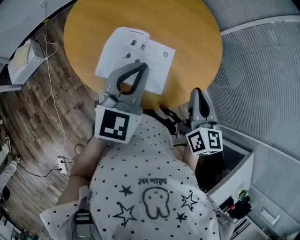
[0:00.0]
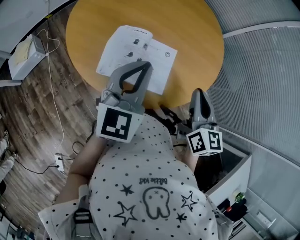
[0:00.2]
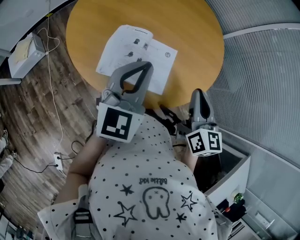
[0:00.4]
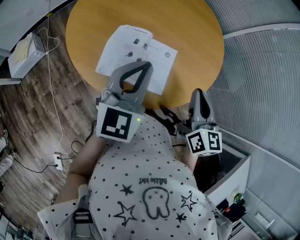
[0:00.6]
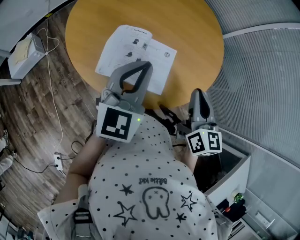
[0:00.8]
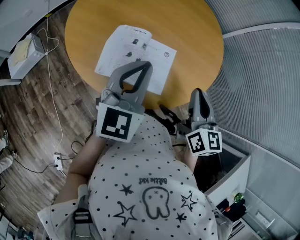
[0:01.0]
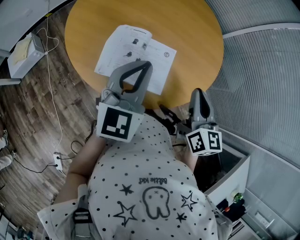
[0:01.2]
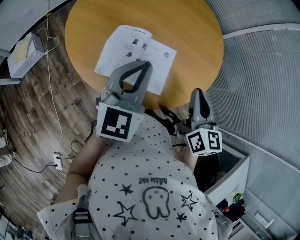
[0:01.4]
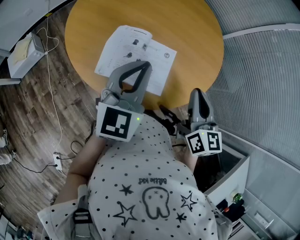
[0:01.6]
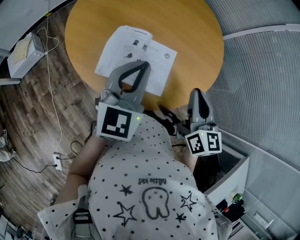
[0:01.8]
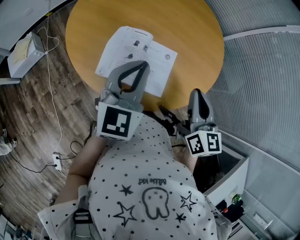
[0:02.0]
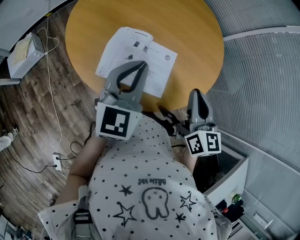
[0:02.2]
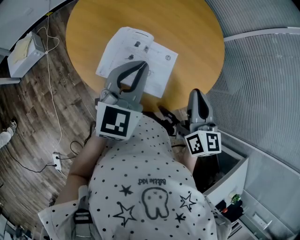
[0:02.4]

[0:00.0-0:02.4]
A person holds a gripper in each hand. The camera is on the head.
0:00.0 to 0:01.2: Both grippers stay about where they are.
0:01.2 to 0:02.4: Both grippers stay put.

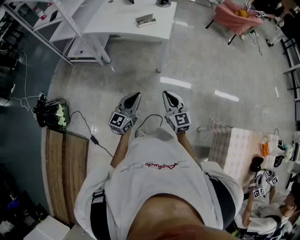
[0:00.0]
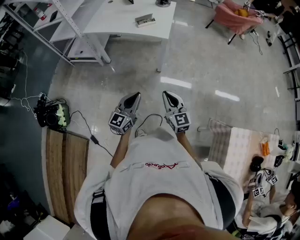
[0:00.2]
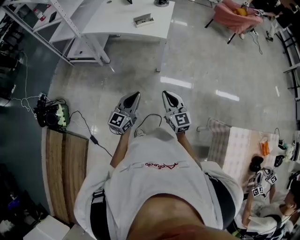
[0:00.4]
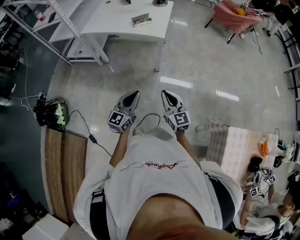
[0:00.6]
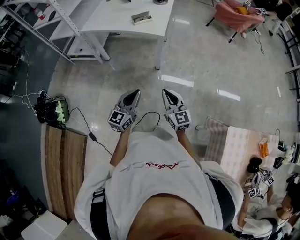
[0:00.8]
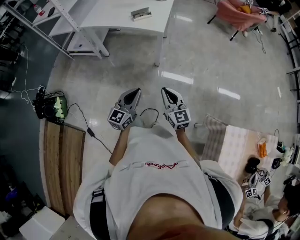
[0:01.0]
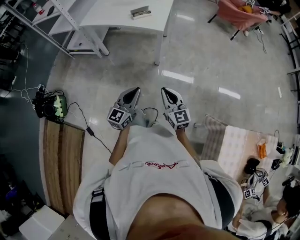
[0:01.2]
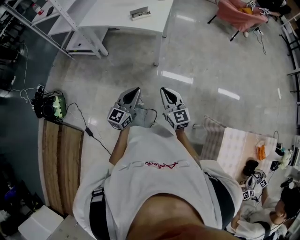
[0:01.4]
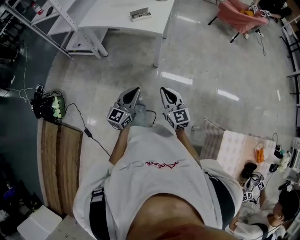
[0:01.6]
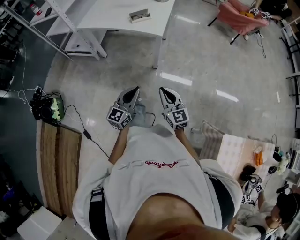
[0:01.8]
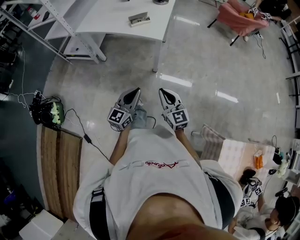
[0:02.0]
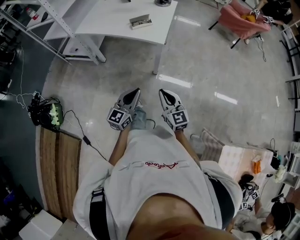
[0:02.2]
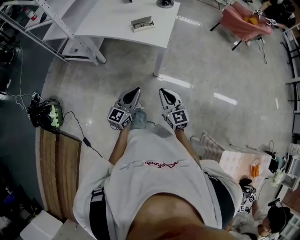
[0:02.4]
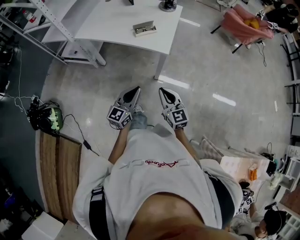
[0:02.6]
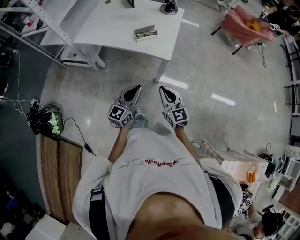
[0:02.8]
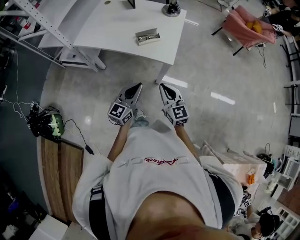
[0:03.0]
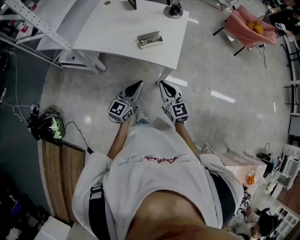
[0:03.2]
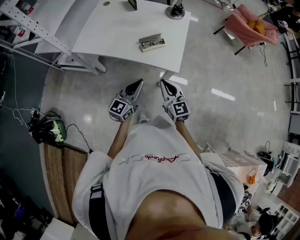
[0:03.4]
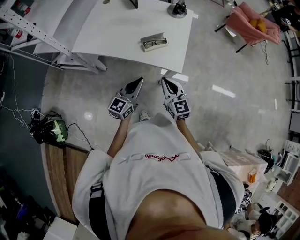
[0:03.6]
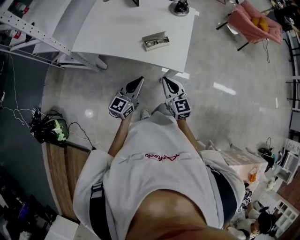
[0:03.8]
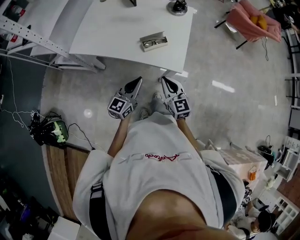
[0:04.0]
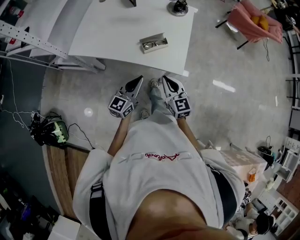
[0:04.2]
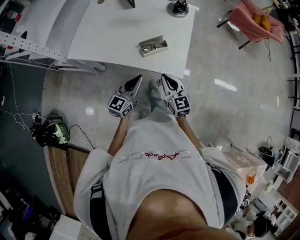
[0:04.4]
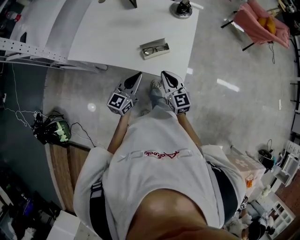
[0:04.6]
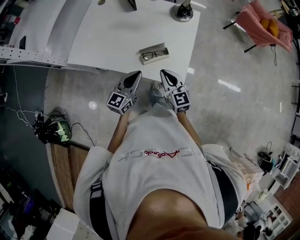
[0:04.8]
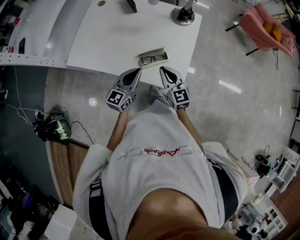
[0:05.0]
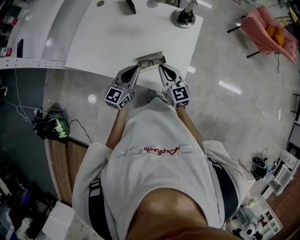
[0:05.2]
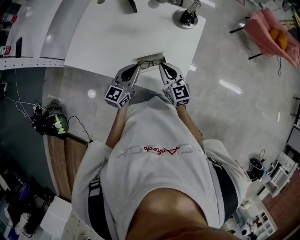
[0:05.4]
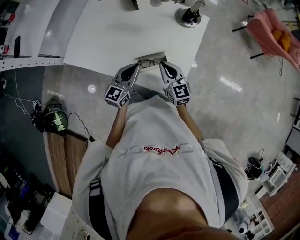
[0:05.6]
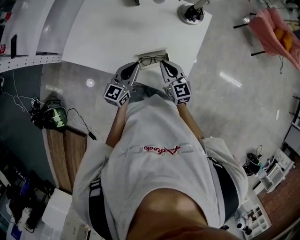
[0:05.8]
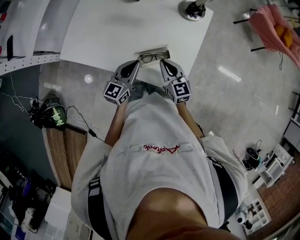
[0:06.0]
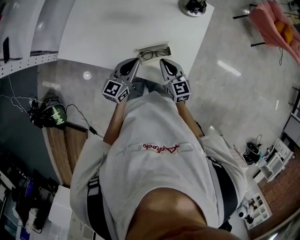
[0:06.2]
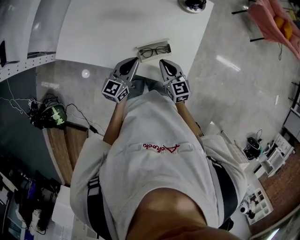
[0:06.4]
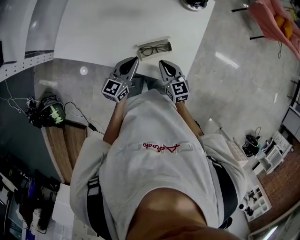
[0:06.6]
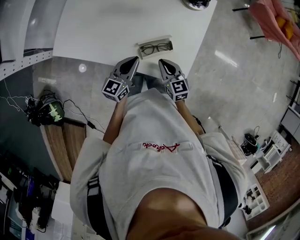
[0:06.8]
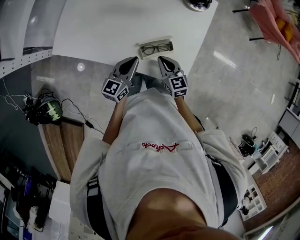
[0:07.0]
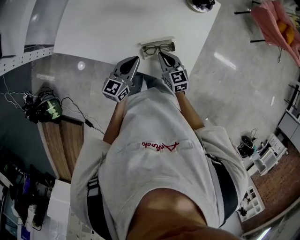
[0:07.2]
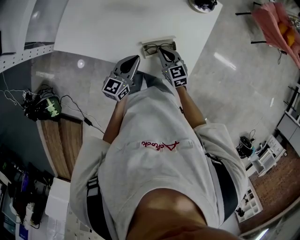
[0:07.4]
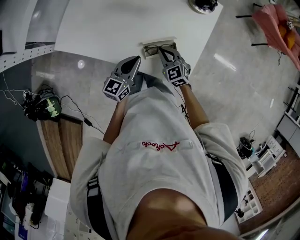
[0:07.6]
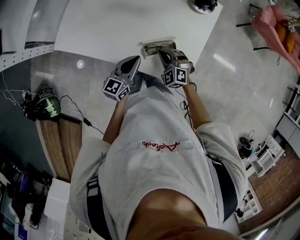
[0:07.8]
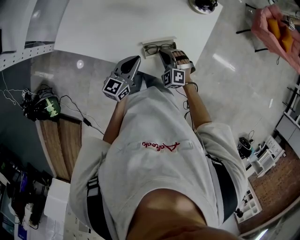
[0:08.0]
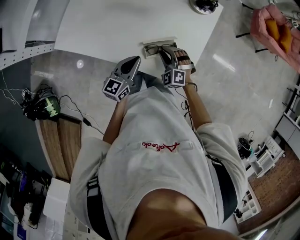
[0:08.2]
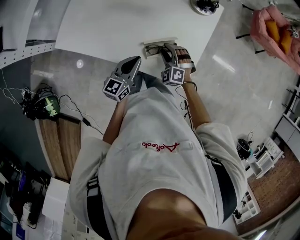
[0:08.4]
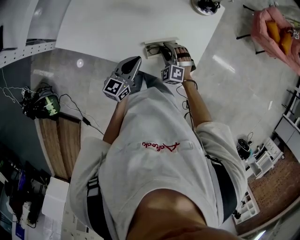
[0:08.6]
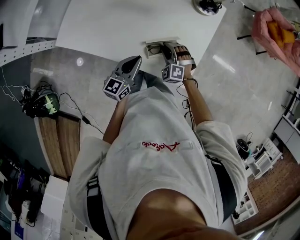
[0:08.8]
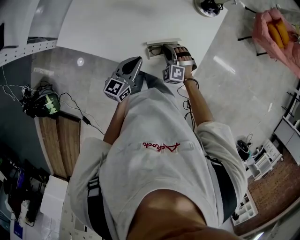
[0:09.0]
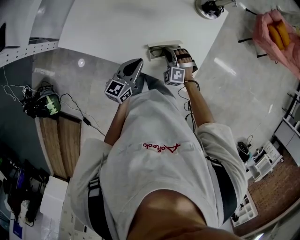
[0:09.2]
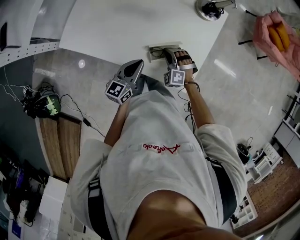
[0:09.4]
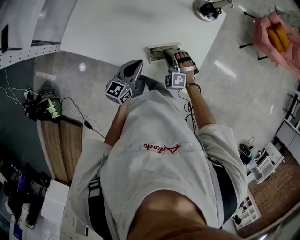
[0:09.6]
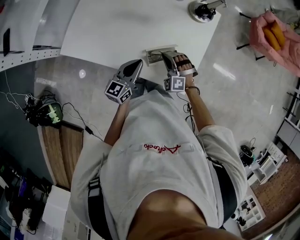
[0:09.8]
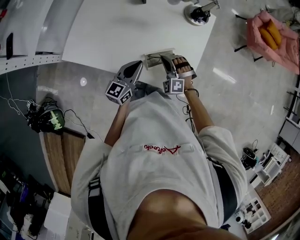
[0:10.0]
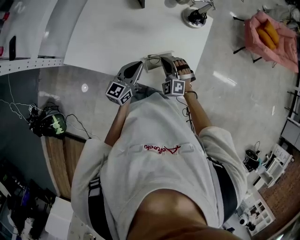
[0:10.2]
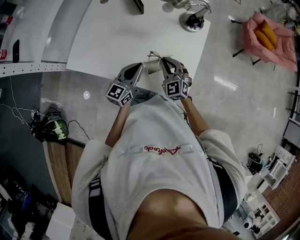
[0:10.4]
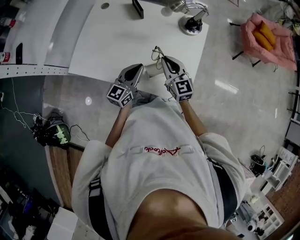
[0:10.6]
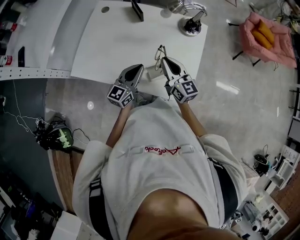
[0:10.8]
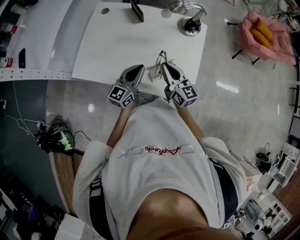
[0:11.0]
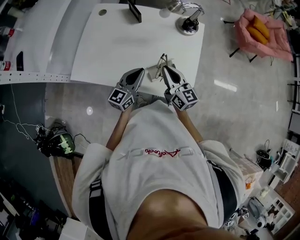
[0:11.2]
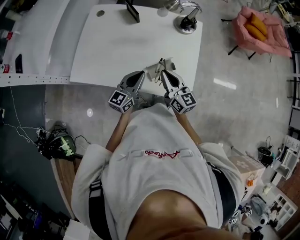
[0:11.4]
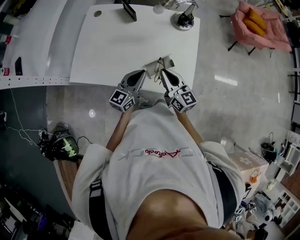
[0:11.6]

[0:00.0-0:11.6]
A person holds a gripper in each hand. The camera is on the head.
0:00.0 to 0:01.4: The grippers both shift to the right by approximately 5 cm.
0:01.4 to 0:02.8: The grippers both shift forward by approximately 25 cm.
0:02.8 to 0:04.4: The two grippers go some 20 cm forward.
0:04.4 to 0:05.8: The two grippers go about 15 cm forward.
0:05.8 to 0:07.2: The right gripper travels downward by roughly 10 cm.
0:07.2 to 0:08.8: The right gripper ends up some 5 cm from where it was, twists about 60 degrees counterclockwise, seen from behind, and opens up.
0:08.8 to 0:10.2: The left gripper ends up about 5 cm from where it was. Meanwhile the right gripper moves upward, roughly 10 cm, and closes.
0:10.2 to 0:11.6: The right gripper shifts roughly 10 cm upward, and rolls clockwise, seen from behind, by approximately 80 degrees.

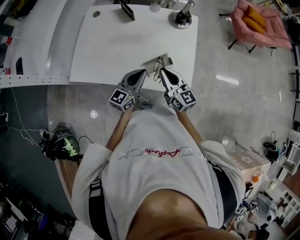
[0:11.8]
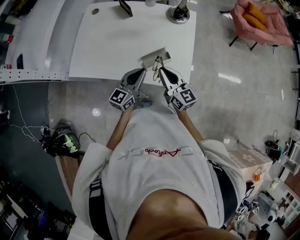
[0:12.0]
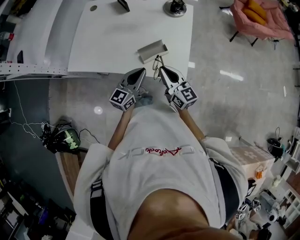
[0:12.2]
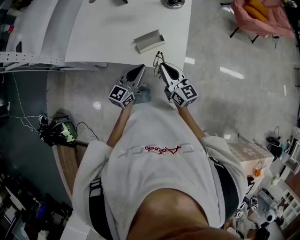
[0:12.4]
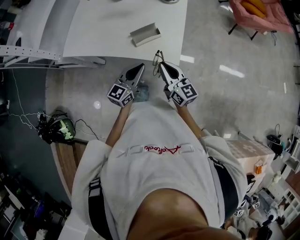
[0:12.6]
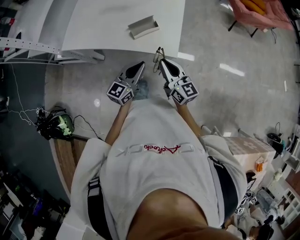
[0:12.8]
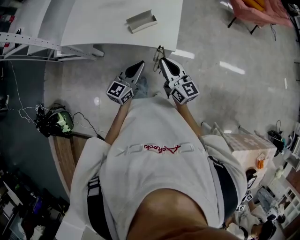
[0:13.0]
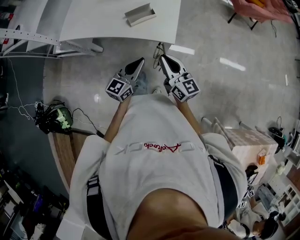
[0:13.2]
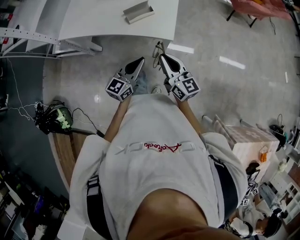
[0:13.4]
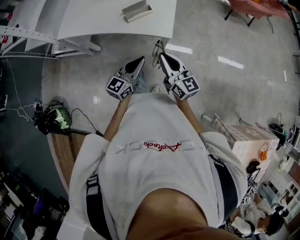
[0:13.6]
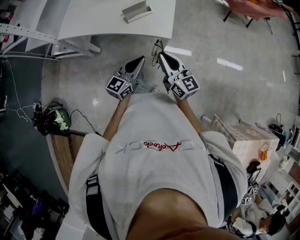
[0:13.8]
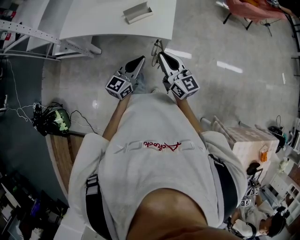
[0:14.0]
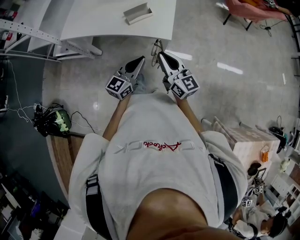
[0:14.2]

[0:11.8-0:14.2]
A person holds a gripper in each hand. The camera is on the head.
0:11.8 to 0:13.0: The two grippers go roughly 25 cm backward and to the right.
0:13.0 to 0:14.2: Both grippers move backward, approximately 5 cm.

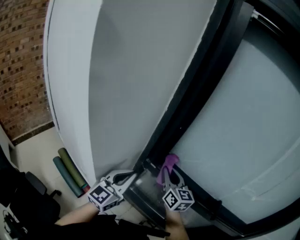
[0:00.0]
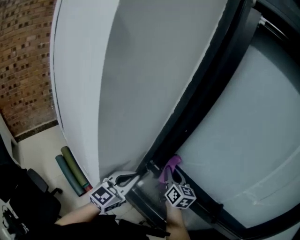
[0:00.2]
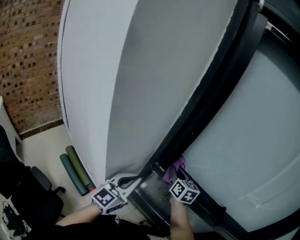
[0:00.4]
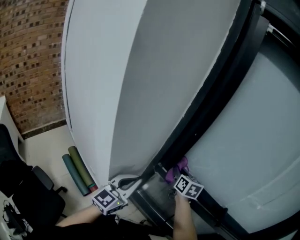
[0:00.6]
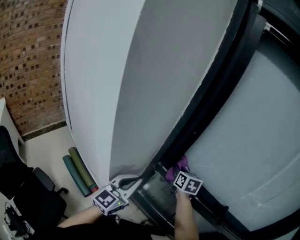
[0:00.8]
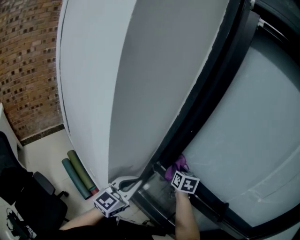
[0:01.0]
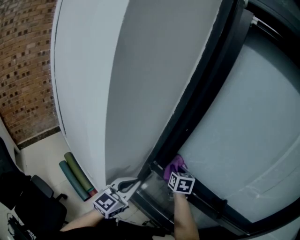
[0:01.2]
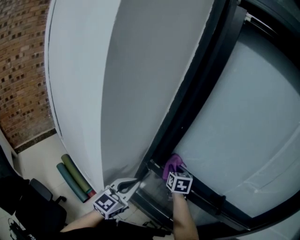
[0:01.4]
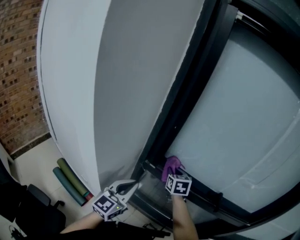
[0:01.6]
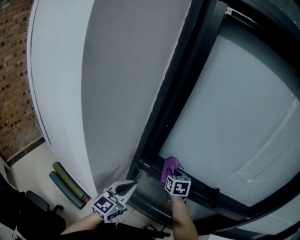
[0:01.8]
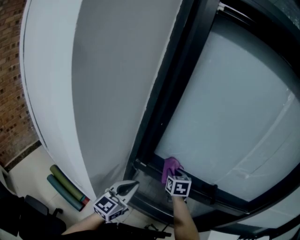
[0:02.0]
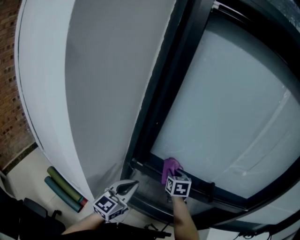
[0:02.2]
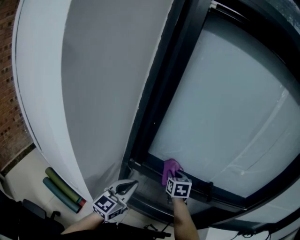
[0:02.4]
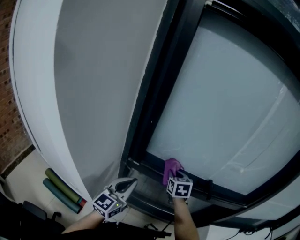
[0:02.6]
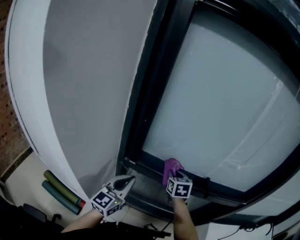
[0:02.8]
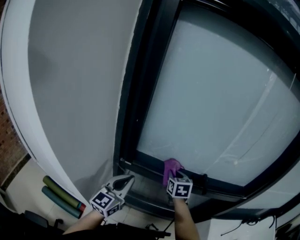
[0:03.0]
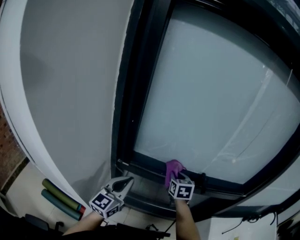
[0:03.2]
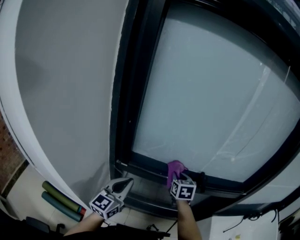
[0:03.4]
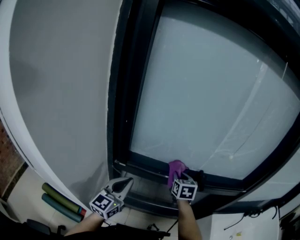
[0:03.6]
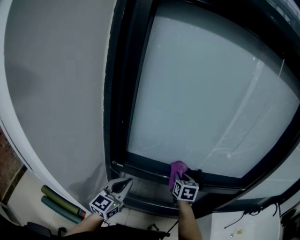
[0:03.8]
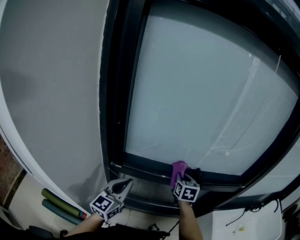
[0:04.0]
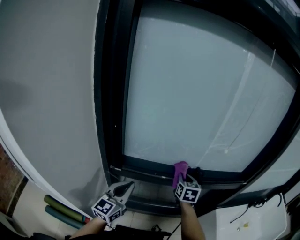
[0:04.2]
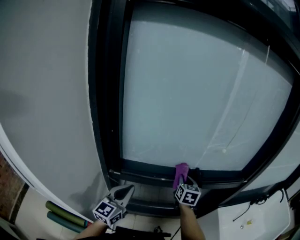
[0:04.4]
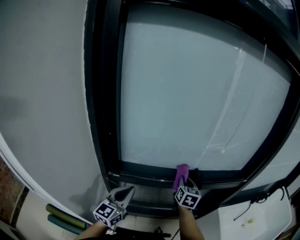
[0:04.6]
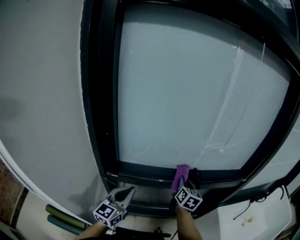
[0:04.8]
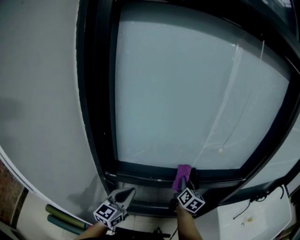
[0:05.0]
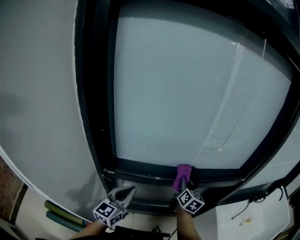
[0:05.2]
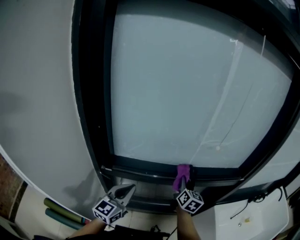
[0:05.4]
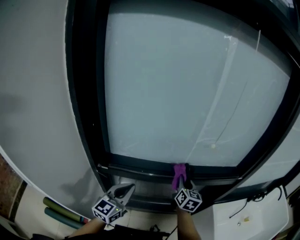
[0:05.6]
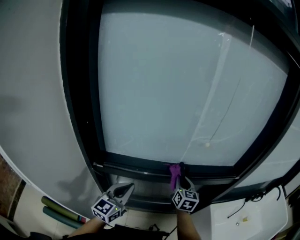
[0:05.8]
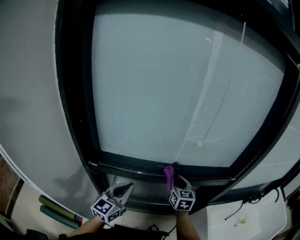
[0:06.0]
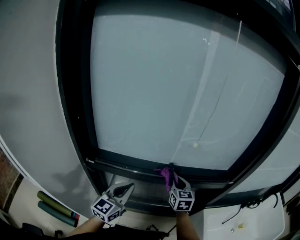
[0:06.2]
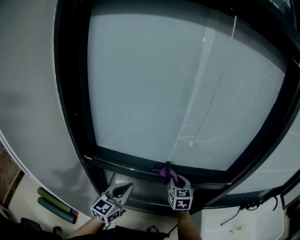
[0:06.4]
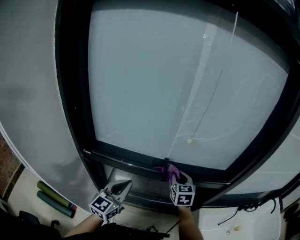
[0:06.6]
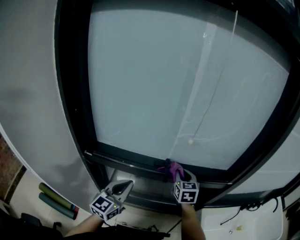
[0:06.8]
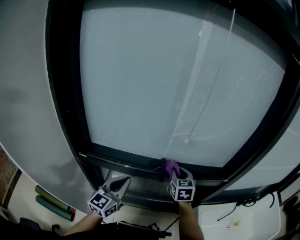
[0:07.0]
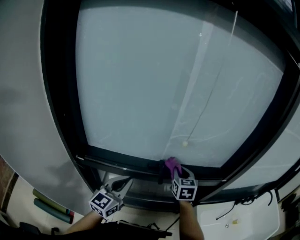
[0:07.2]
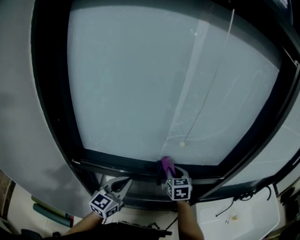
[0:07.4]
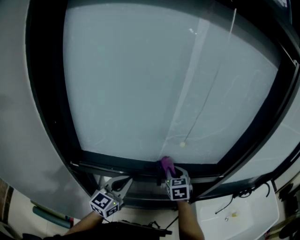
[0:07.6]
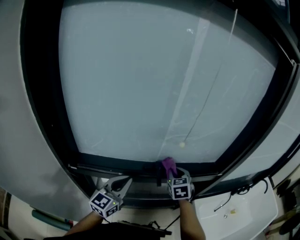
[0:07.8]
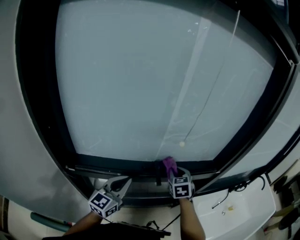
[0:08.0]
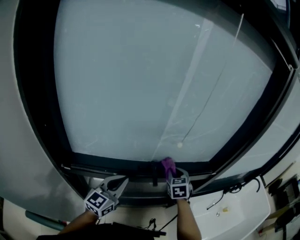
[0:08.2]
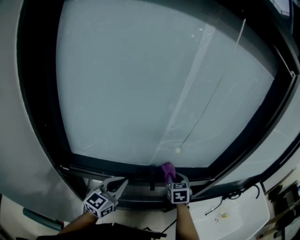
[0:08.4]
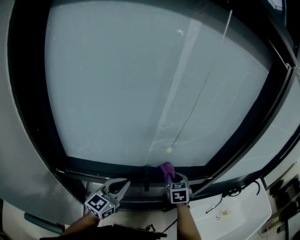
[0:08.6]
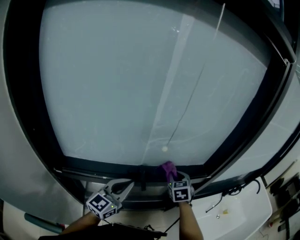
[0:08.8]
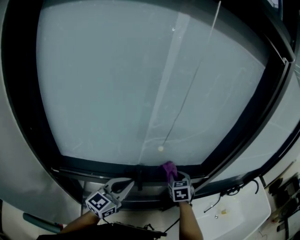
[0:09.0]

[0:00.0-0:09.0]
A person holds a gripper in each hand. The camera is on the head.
0:00.0 to 0:01.6: The right gripper goes approximately 5 cm downward, and changes its angle by about 30 degrees.
0:01.6 to 0:03.0: The right gripper travels to the right by about 15 cm; the left gripper heads to the right, covering roughly 5 cm.
0:03.0 to 0:04.4: The right gripper goes roughly 10 cm to the right, and changes its angle by about 20 degrees.
0:04.4 to 0:06.0: Both grippers travel together to the right, some 10 cm.
0:06.0 to 0:07.6: The left gripper moves to the right and forward, approximately 10 cm. Meanwhile the right gripper ends up roughly 5 cm from where it was, and swivels about 20 degrees.
0:07.6 to 0:09.0: The two grippers go approximately 10 cm to the right.
